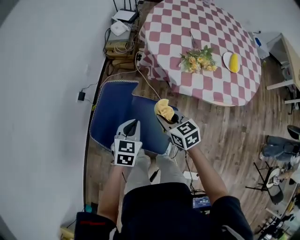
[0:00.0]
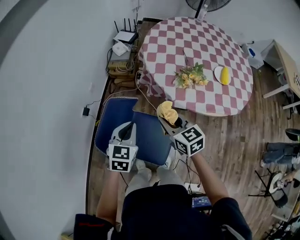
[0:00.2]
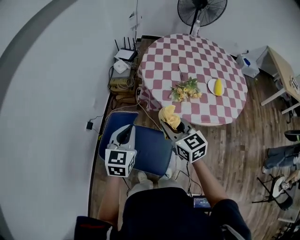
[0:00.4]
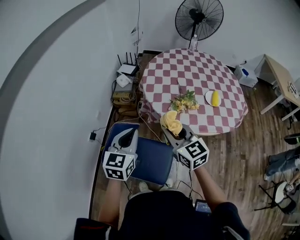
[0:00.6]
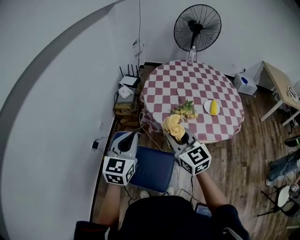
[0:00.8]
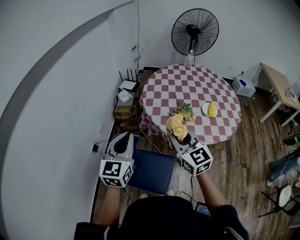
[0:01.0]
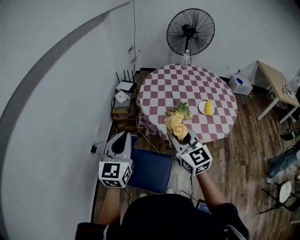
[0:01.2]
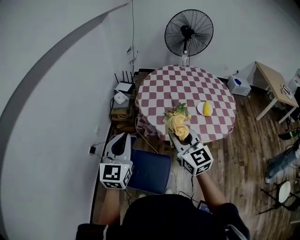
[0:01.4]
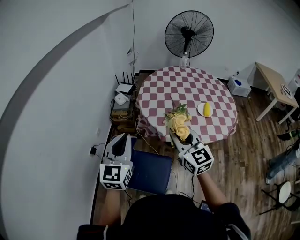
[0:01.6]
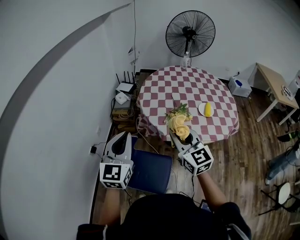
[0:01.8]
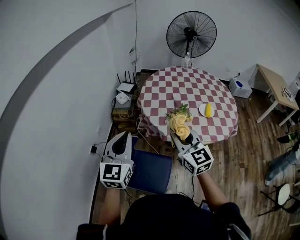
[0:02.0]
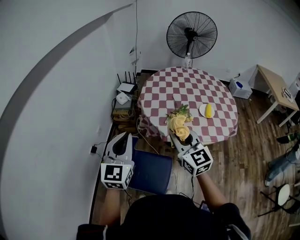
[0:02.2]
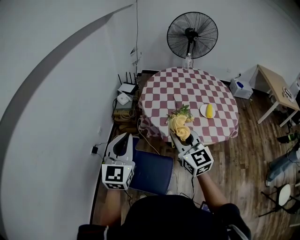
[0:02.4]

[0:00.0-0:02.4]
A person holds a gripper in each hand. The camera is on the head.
0:00.0 to 0:01.2: The two grippers go about 35 cm upward. The right gripper angles its fingers upward, by approximately 30 degrees. The left gripper points its fingers roughly 40 degrees further upward.
0:01.2 to 0:02.4: There are only small adjustments of the grippers.

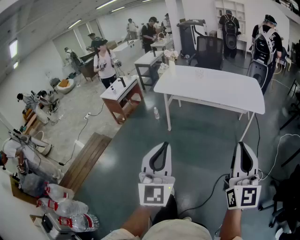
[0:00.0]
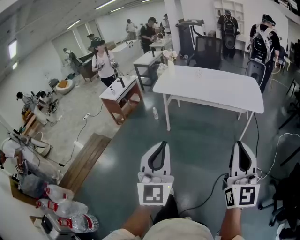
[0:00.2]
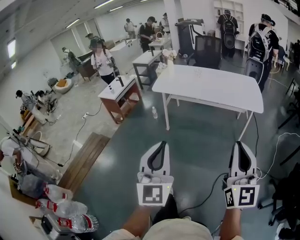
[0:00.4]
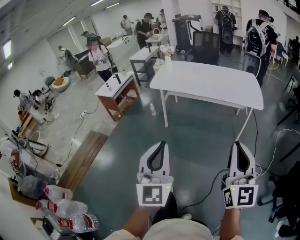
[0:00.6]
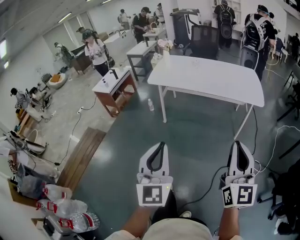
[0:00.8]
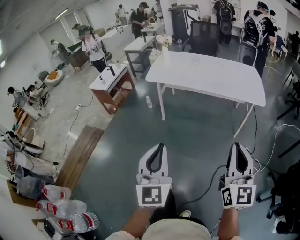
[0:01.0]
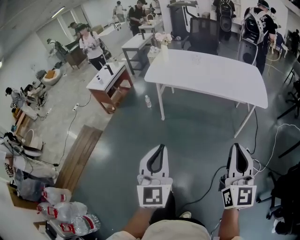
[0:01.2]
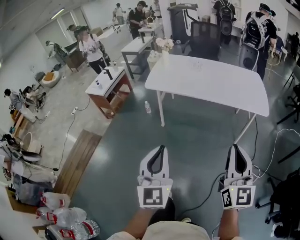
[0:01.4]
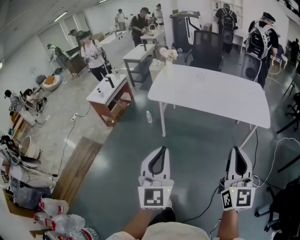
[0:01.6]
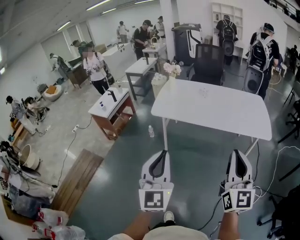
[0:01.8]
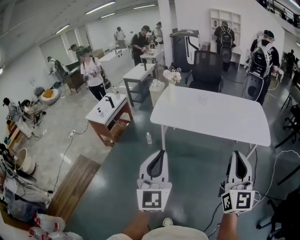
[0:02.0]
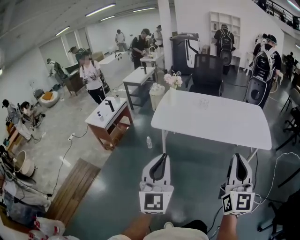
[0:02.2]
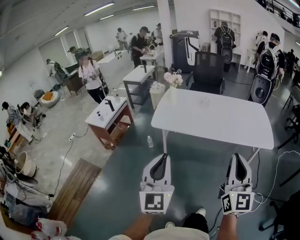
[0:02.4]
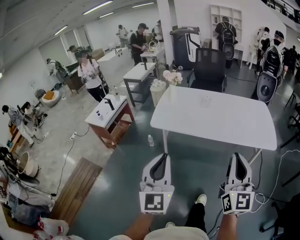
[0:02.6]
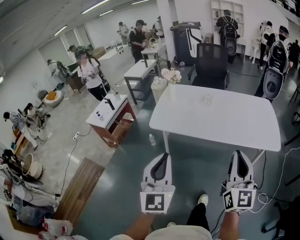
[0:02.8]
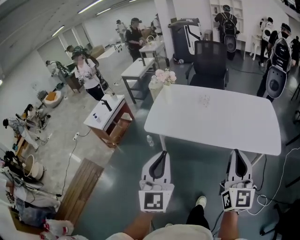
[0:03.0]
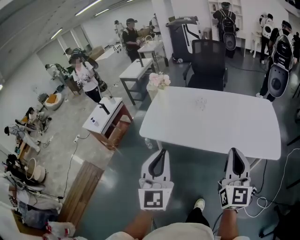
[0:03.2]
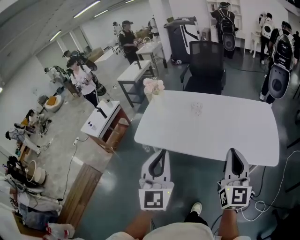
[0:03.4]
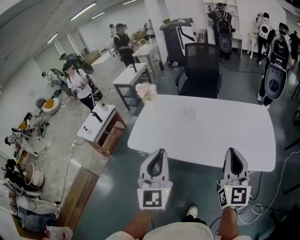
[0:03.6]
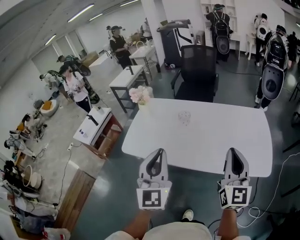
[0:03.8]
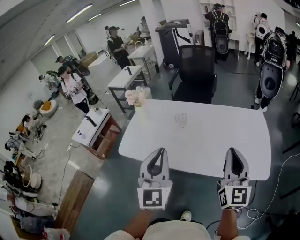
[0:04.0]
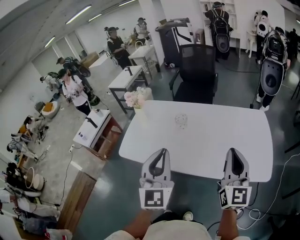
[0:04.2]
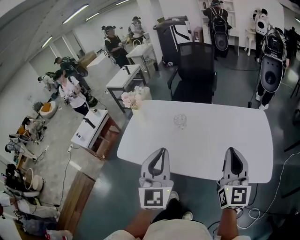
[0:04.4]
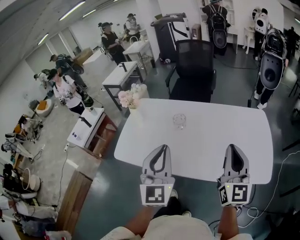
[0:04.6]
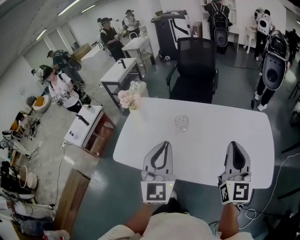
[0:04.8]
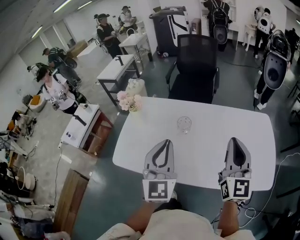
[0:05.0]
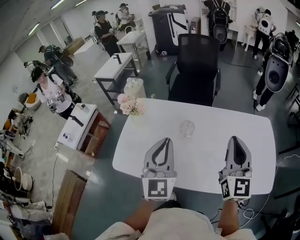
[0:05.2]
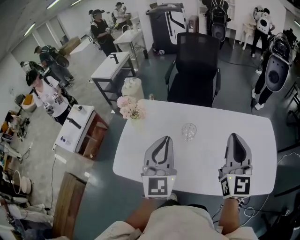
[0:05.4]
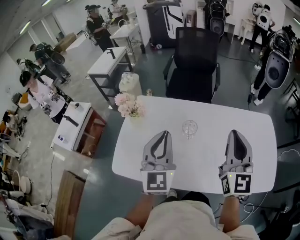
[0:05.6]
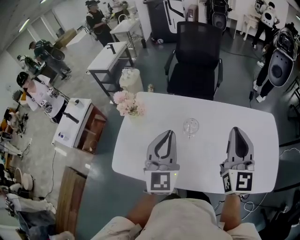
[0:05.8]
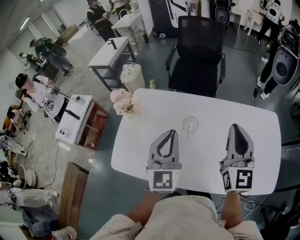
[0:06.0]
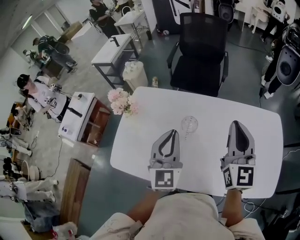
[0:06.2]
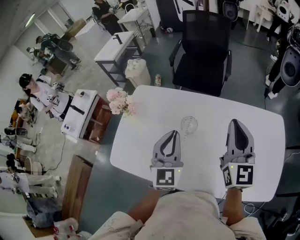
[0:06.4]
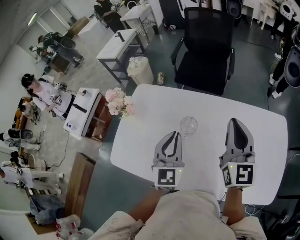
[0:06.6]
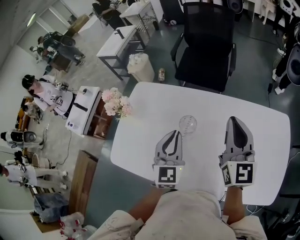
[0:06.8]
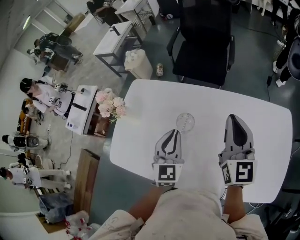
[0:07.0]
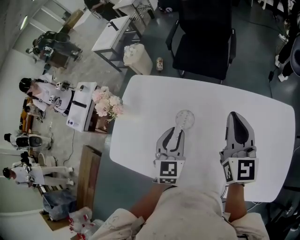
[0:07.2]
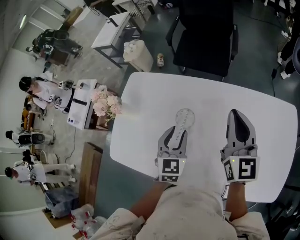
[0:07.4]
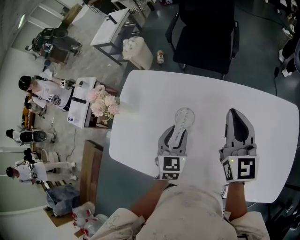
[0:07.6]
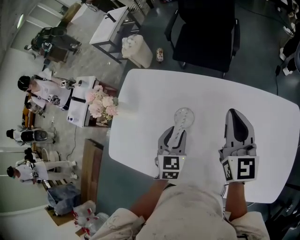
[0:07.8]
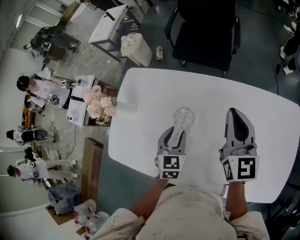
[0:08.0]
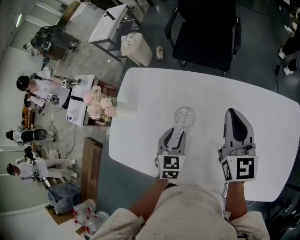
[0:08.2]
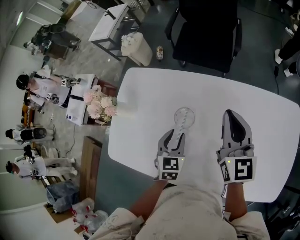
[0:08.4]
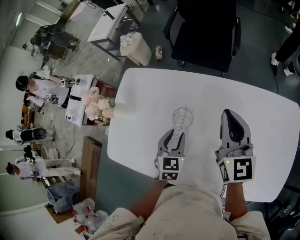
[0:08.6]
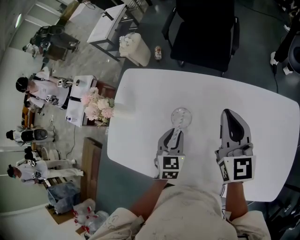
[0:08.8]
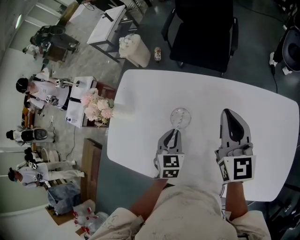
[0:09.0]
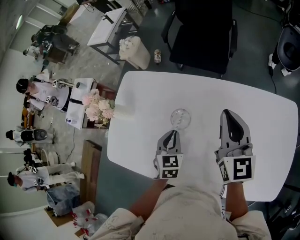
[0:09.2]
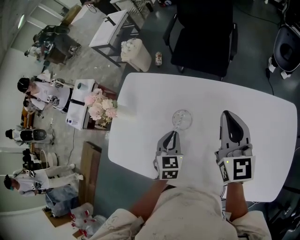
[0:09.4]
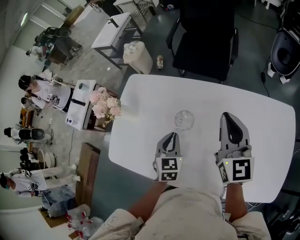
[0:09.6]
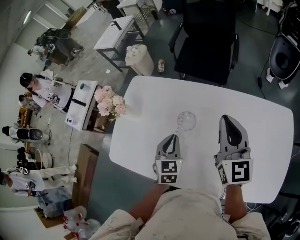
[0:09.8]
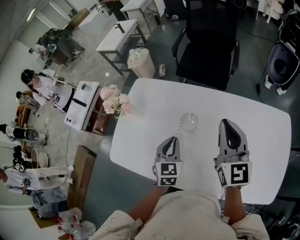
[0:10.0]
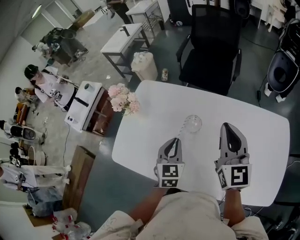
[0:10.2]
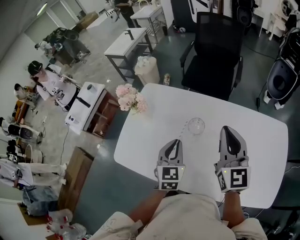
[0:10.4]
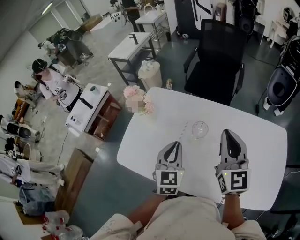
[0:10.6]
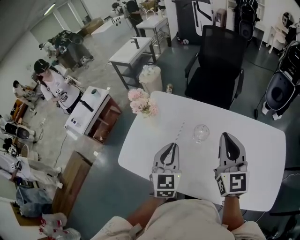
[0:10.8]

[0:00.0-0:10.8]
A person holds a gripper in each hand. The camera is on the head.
0:00.0 to 0:01.6: Both grippers travel together forward, about 25 cm.
0:01.6 to 0:03.0: The grippers both shift forward by approximately 25 cm.
0:03.0 to 0:04.6: Both grippers travel together forward and to the right, about 35 cm.
0:04.6 to 0:06.2: Both grippers travel together forward, some 25 cm.
0:06.2 to 0:07.8: The right gripper travels downward, forward and to the right by roughly 15 cm. Meanwhile the left gripper shifts approximately 20 cm downward, angles its fingers downward, by roughly 30 degrees, and opens up.
0:07.8 to 0:09.2: The left gripper closes.
0:09.2 to 0:10.8: The right gripper goes roughly 20 cm to the left, backward and upward. Meanwhile the left gripper shifts approximately 25 cm upward, to the left and backward, and changes its angle by about 30 degrees.

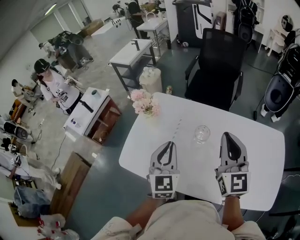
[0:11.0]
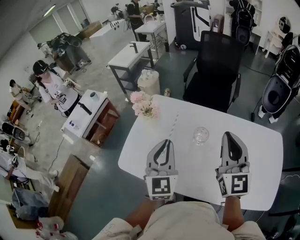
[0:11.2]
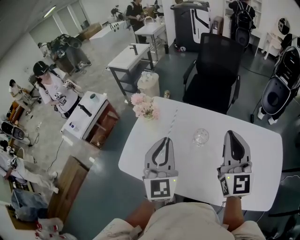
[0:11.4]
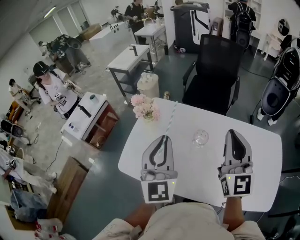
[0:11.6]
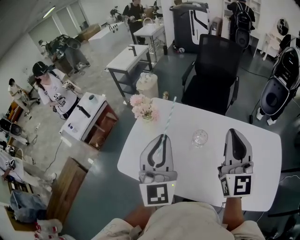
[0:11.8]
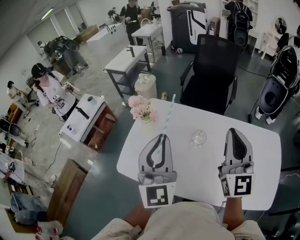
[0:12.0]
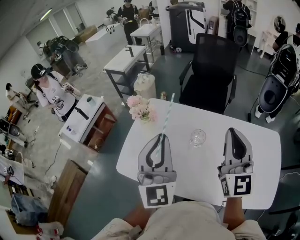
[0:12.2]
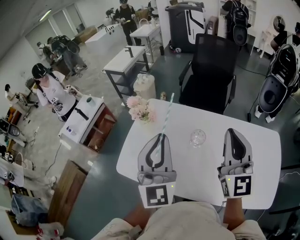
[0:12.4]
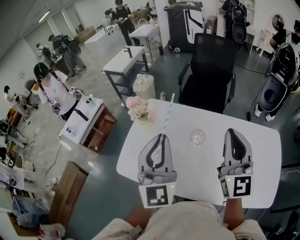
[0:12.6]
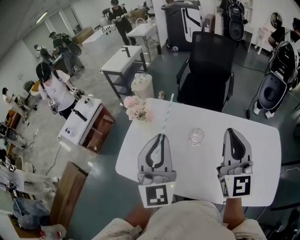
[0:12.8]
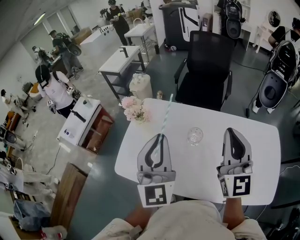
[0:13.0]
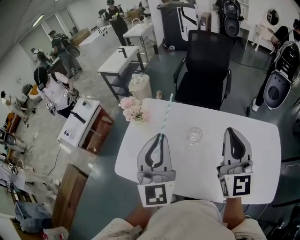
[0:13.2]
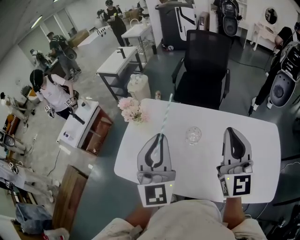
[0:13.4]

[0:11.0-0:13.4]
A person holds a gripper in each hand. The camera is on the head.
0:11.0 to 0:12.2: The left gripper moves upward, approximately 15 cm, and turns by roughly 20 degrees, while the right gripper moves upward, some 5 cm.
0:12.2 to 0:13.4: There are only small adjustments of the grippers.

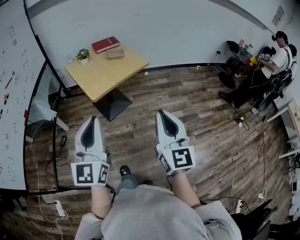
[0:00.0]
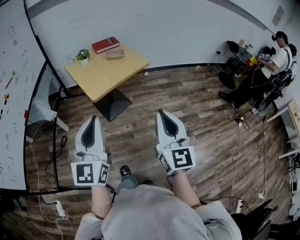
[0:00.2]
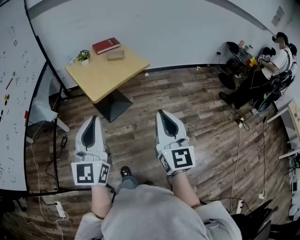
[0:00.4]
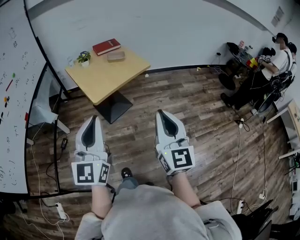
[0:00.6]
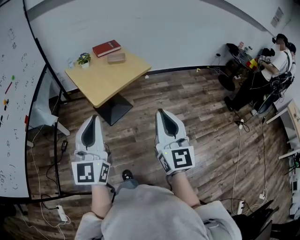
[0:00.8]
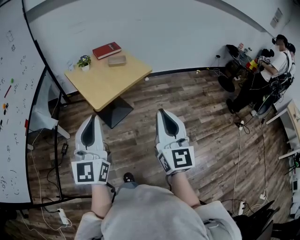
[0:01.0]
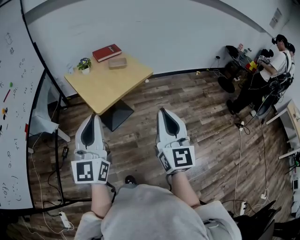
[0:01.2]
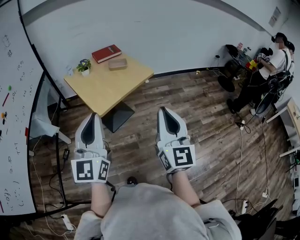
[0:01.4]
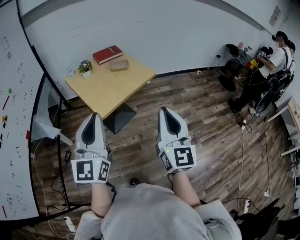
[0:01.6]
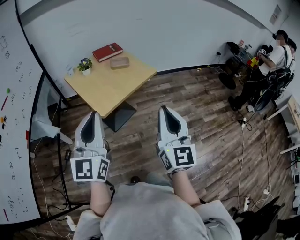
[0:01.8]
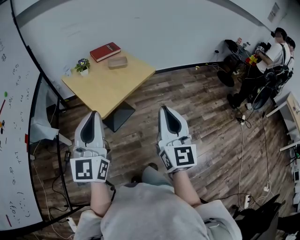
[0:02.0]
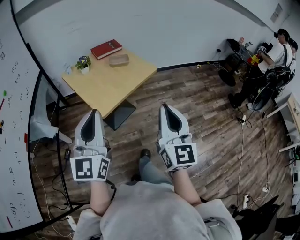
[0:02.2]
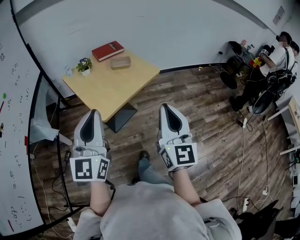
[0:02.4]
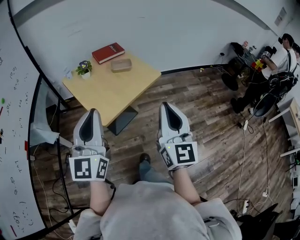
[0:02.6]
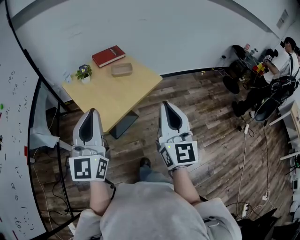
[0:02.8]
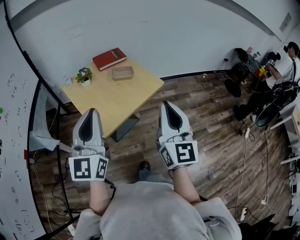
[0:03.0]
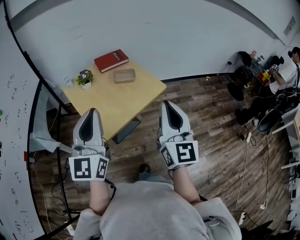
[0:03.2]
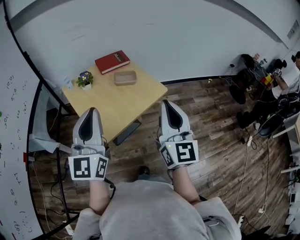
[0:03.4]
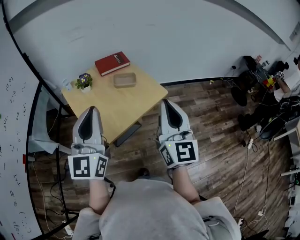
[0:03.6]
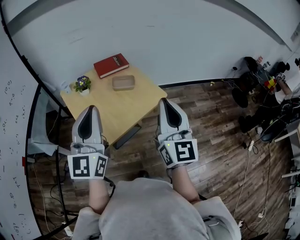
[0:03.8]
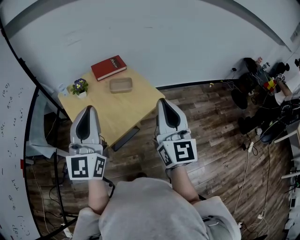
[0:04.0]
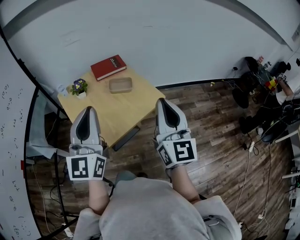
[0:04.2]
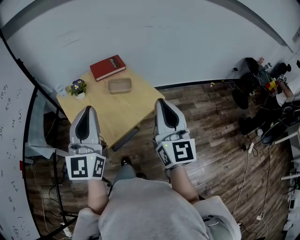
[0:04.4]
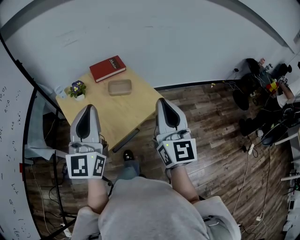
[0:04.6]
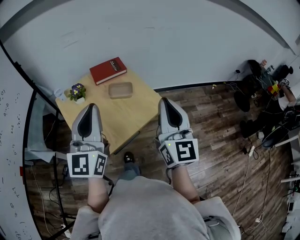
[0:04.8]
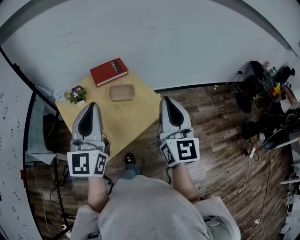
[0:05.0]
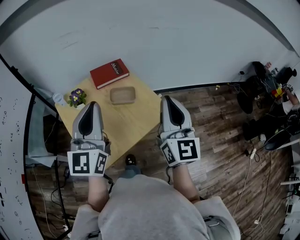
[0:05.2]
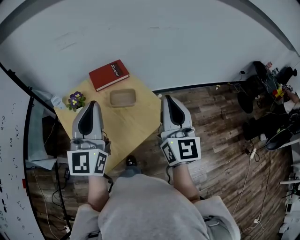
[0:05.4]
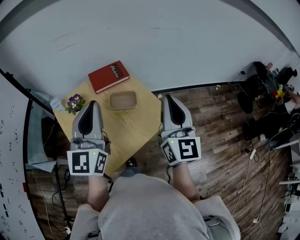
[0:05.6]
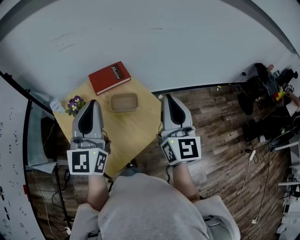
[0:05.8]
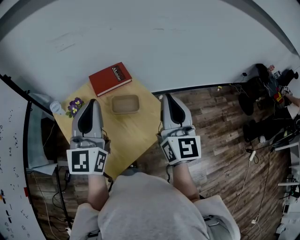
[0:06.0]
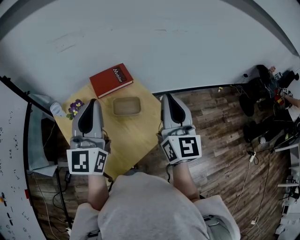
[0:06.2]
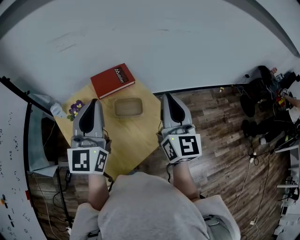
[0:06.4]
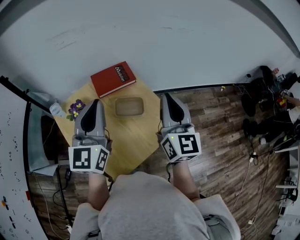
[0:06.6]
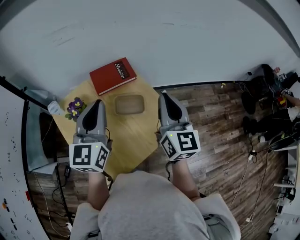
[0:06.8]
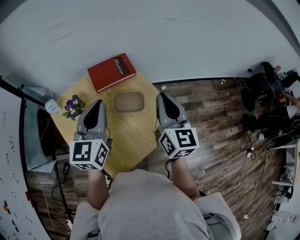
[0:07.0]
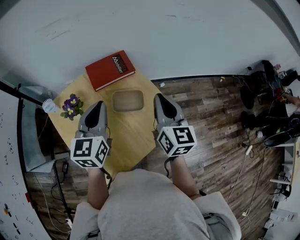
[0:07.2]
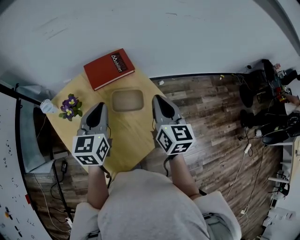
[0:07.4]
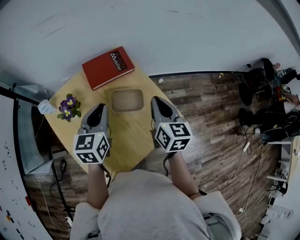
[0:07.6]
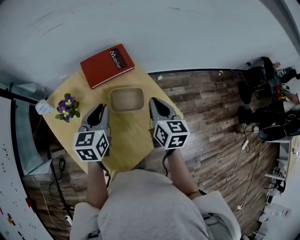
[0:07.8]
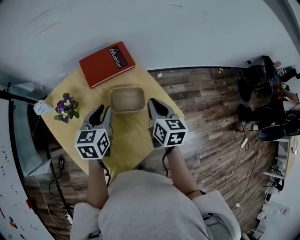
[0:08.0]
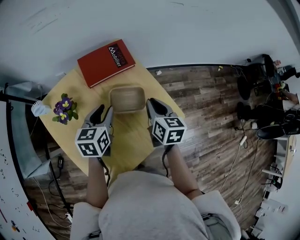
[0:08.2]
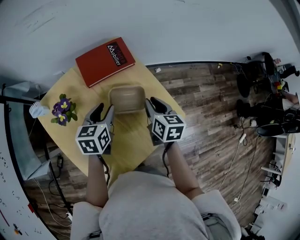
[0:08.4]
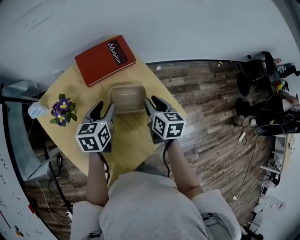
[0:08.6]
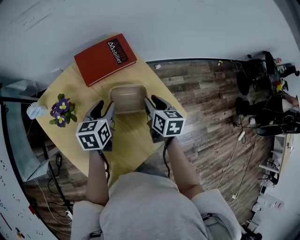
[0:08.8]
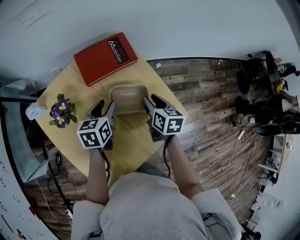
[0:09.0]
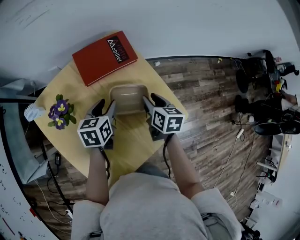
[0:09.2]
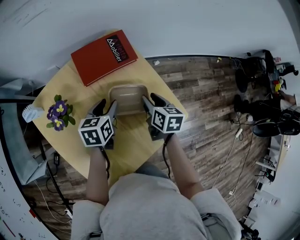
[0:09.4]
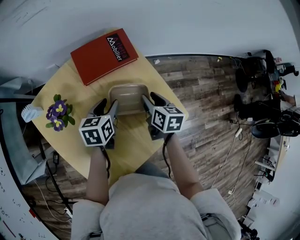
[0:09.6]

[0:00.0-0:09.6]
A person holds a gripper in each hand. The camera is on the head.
0:00.0 to 0:01.6: Both grippers move forward and to the left, about 15 cm.
0:01.6 to 0:03.2: The grippers both shift forward by about 20 cm.
0:03.2 to 0:04.8: The two grippers go about 15 cm forward.
0:04.8 to 0:06.4: The two grippers go about 20 cm forward.
0:06.4 to 0:08.0: Both grippers travel together downward, some 25 cm. The left gripper points its fingers approximately 40 degrees further downward, and opens up; the right gripper tilts its fingers roughly 40 degrees downward.
0:08.0 to 0:09.6: Both grippers move downward, some 10 cm. The right gripper opens its fingers. The left gripper opens up.
